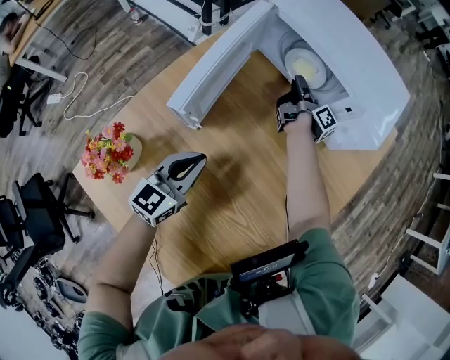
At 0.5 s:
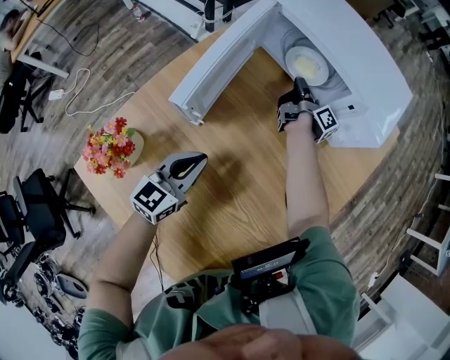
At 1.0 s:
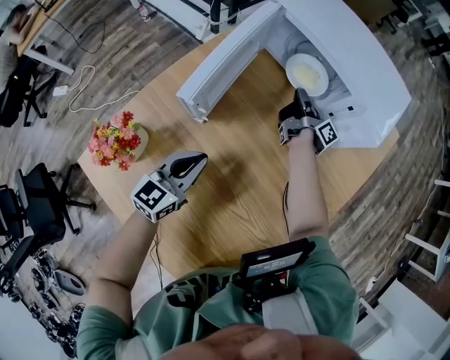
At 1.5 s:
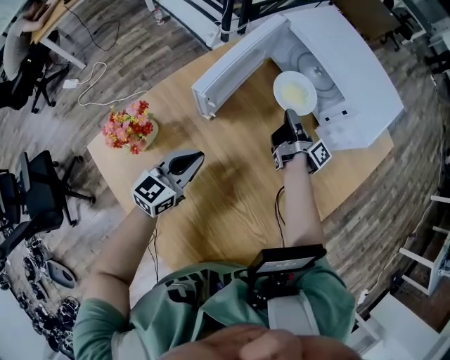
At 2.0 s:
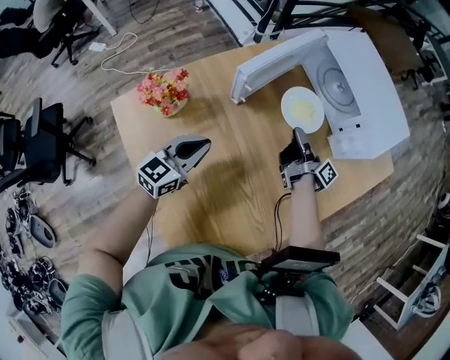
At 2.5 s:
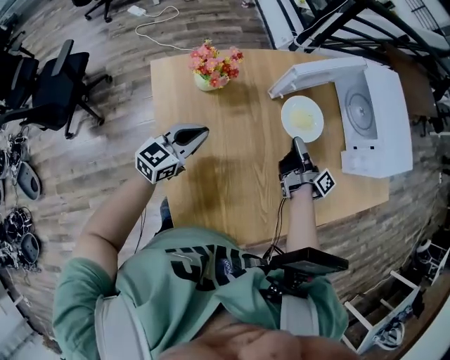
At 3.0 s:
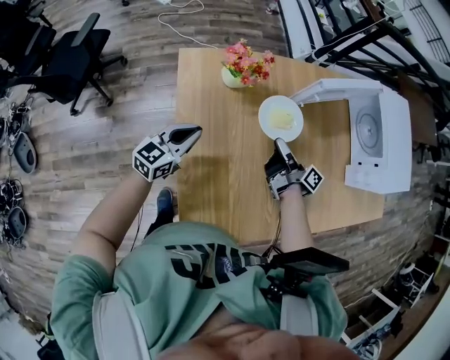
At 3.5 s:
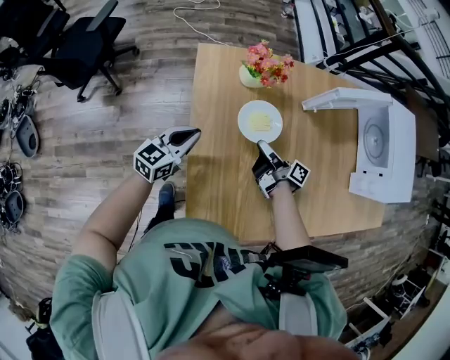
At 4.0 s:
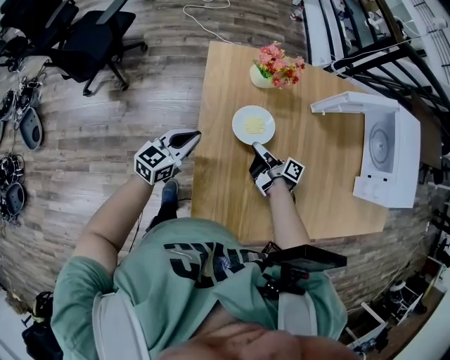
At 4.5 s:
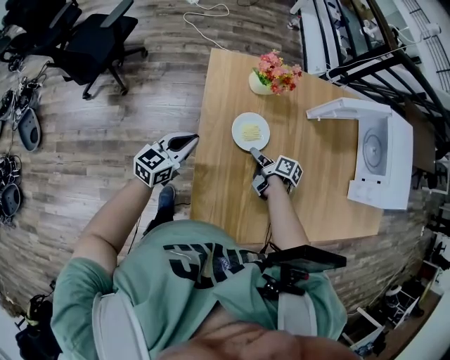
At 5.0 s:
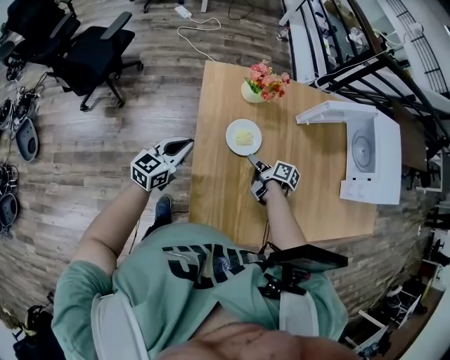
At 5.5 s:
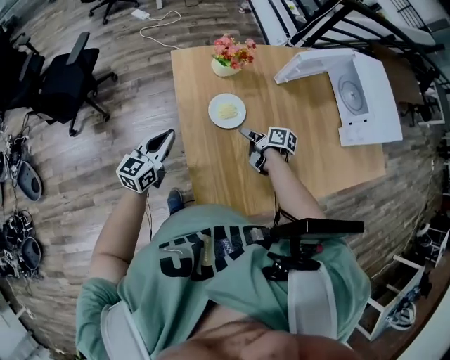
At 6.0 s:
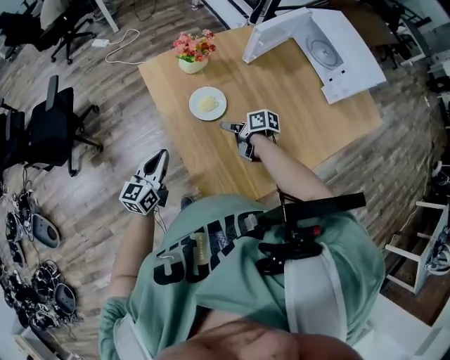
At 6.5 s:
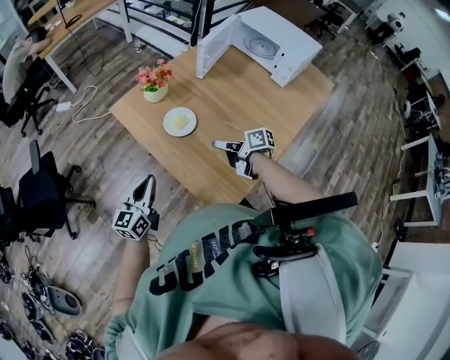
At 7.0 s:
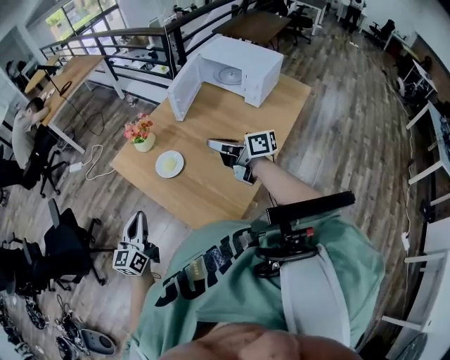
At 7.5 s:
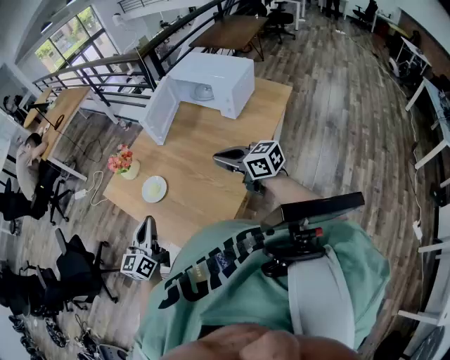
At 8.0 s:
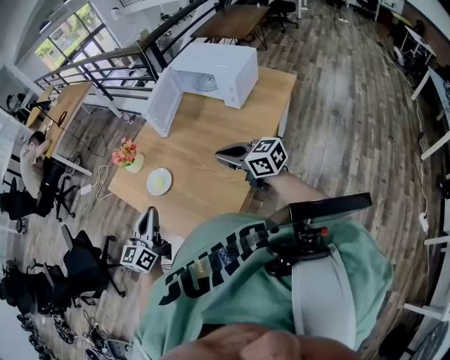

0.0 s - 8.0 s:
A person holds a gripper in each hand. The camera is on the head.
0.0 s - 2.0 s: The left gripper heads backward, covering approximately 10 cm; the right gripper heads backward, covering approximately 25 cm, rotates roughly 30 degrees, and closes.
2.0 s - 4.0 s: The left gripper moves about 30 cm, and swivels some 30 degrees; the right gripper ends up about 40 cm from where it was, and turns by approximately 50 degrees.
4.0 s - 6.0 s: The left gripper moves backward and upward, some 10 cm, while the right gripper heads backward, covering some 5 cm, swivels about 30 degrees, and opens up.
6.0 s - 8.0 s: The left gripper moves upward, to the right and backward, some 25 cm, and turns by some 20 degrees. The right gripper is displaced upward, to the right and backward by roughly 40 cm, rotates roughly 60 degrees, and closes its fingers.

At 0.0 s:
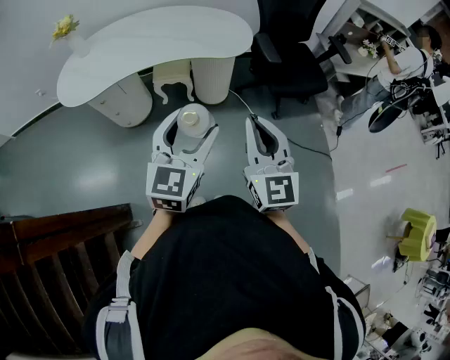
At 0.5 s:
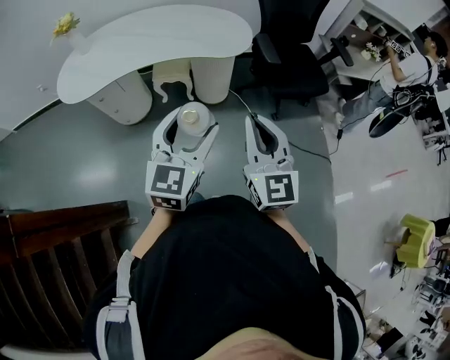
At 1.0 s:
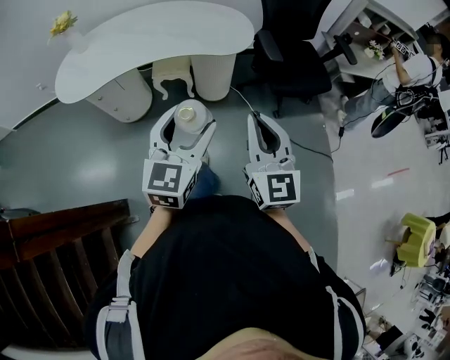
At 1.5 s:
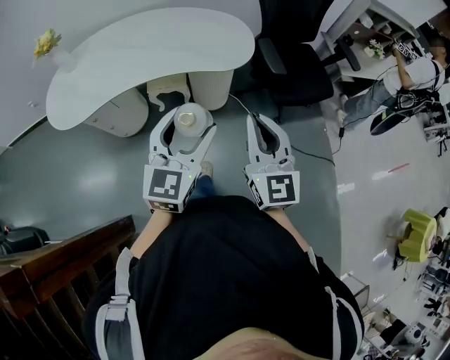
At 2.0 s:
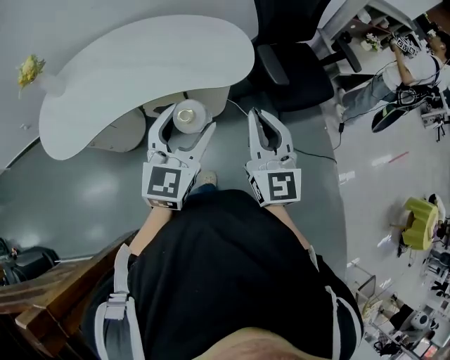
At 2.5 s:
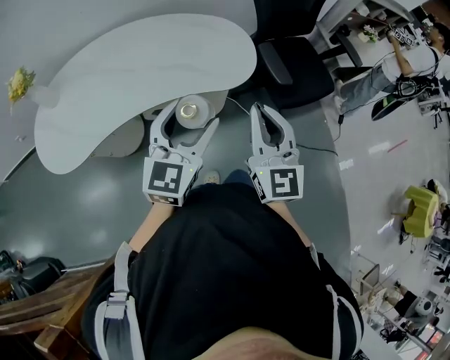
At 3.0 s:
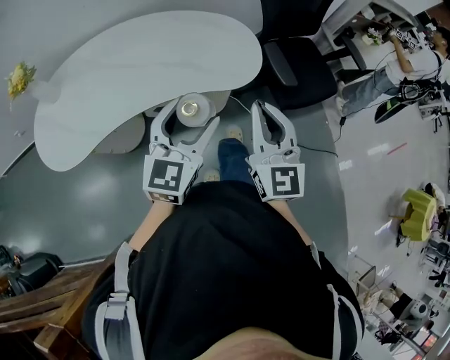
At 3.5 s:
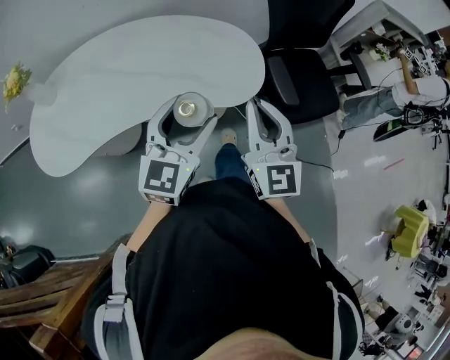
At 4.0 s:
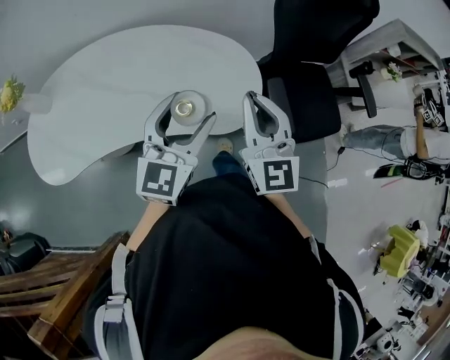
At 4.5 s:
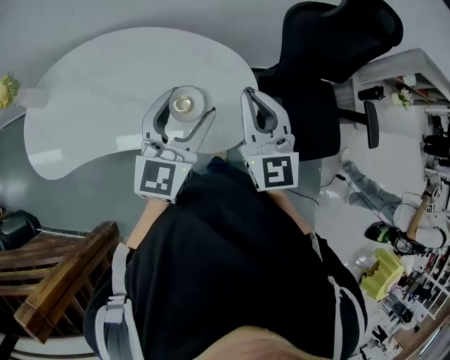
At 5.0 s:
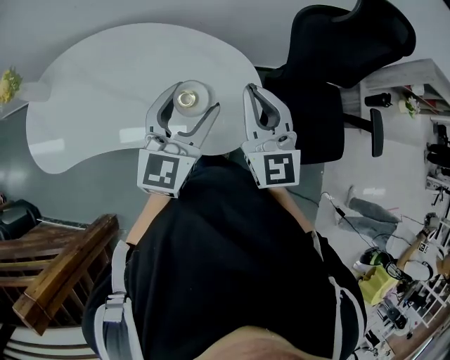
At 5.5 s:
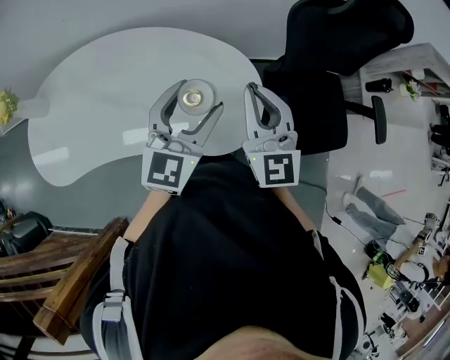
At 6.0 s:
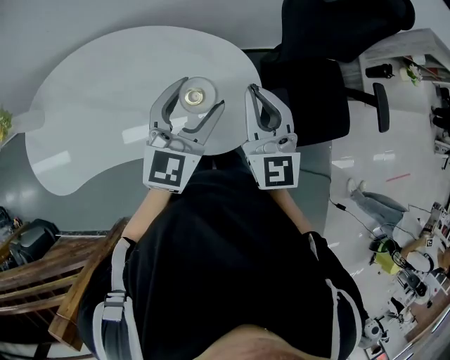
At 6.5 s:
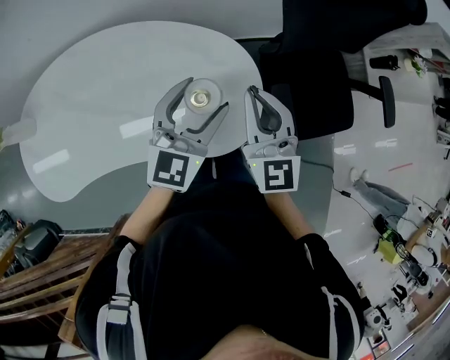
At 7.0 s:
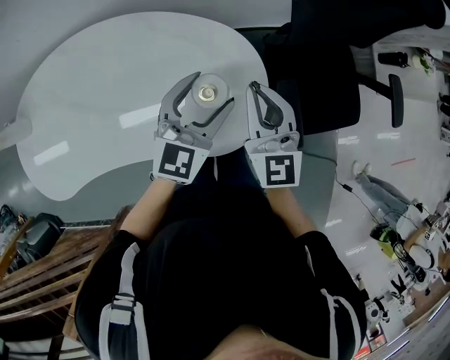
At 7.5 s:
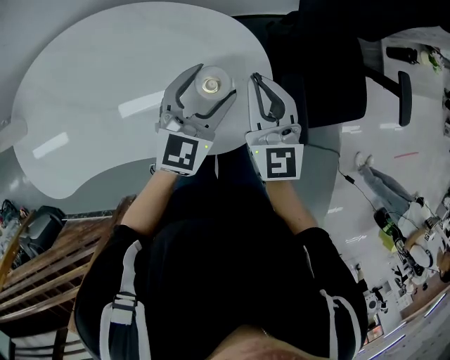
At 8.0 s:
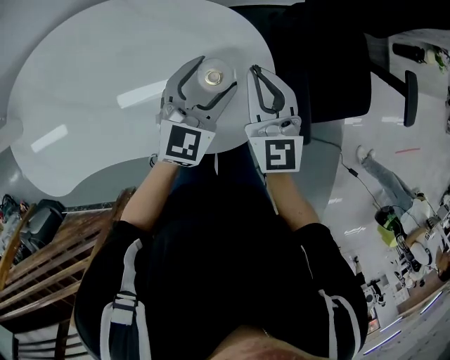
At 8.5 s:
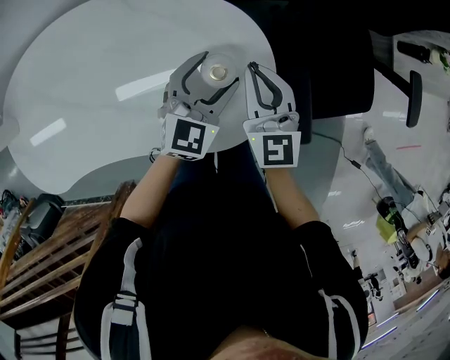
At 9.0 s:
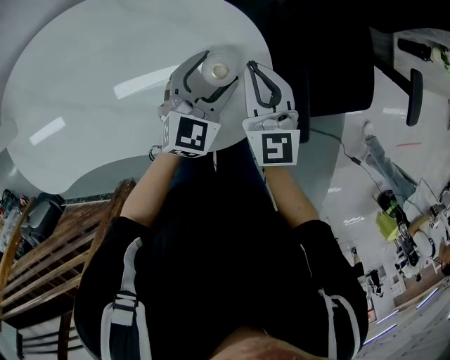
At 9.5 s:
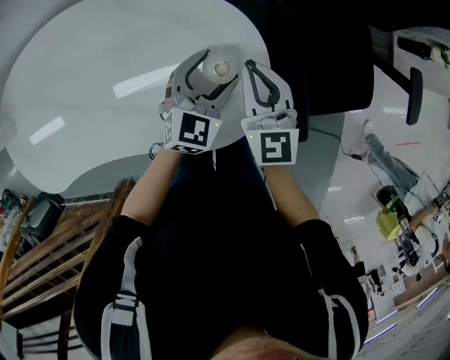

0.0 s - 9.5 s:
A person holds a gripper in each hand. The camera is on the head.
0.0 s - 2.0 s: The grippers both shift forward by some 25 cm.
2.0 s - 4.0 s: Both grippers move forward, some 25 cm.
4.0 s - 5.5 s: The grippers both shift forward by approximately 15 cm.
5.5 s - 7.5 s: Both grippers move downward, roughly 15 cm.
7.5 s - 9.5 s: The grippers both shift downward by some 10 cm.

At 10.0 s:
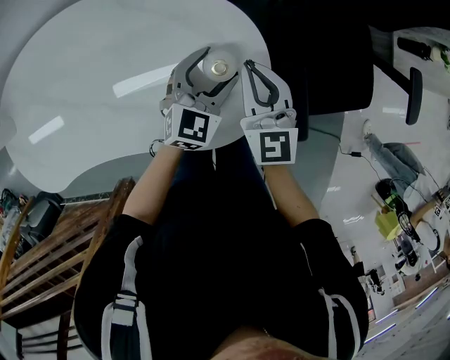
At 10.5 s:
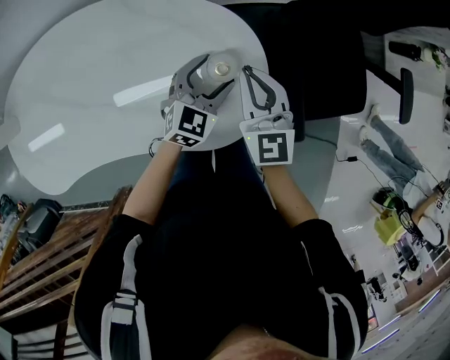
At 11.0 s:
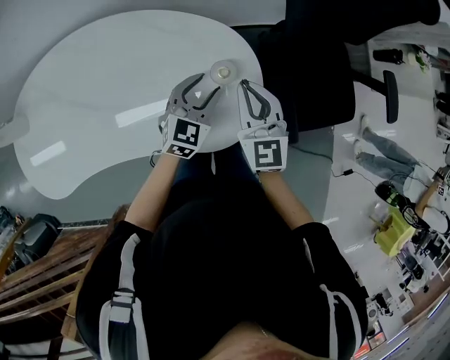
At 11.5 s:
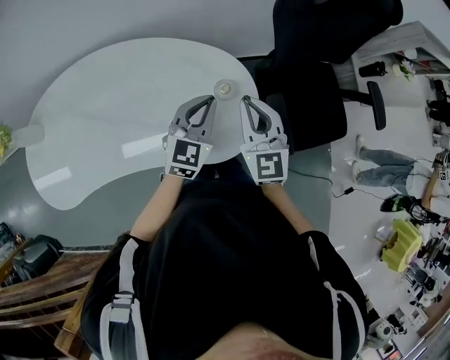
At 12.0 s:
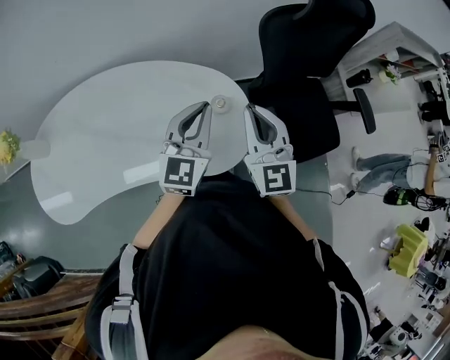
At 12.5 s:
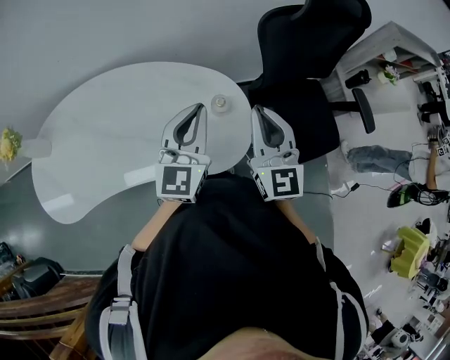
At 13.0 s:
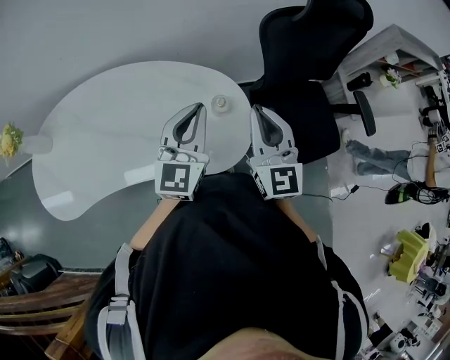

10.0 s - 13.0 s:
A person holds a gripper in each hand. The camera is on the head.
10.0 s - 11.5 s: The two grippers go approximately 15 cm upward. The left gripper closes its fingers.
11.5 s - 13.0 s: The two grippers go approximately 10 cm upward.

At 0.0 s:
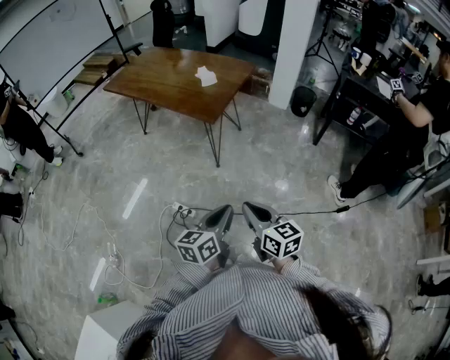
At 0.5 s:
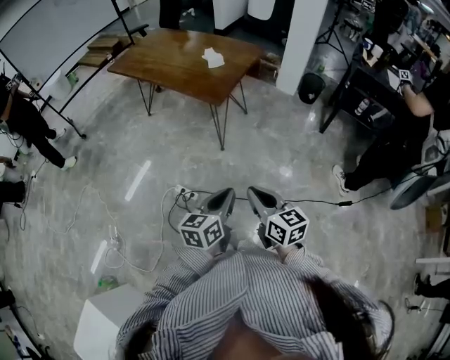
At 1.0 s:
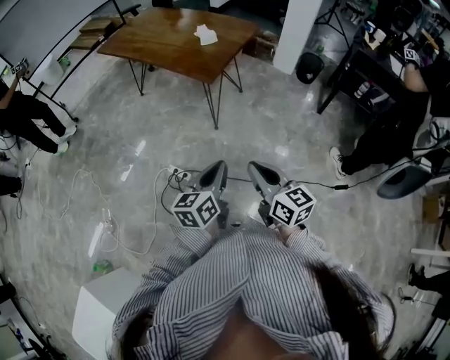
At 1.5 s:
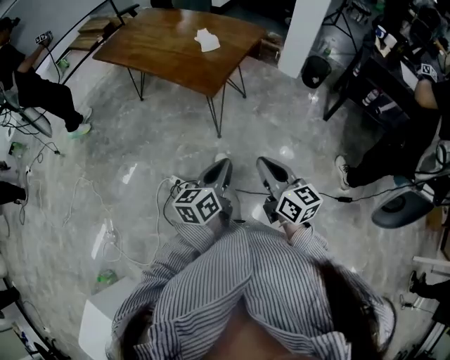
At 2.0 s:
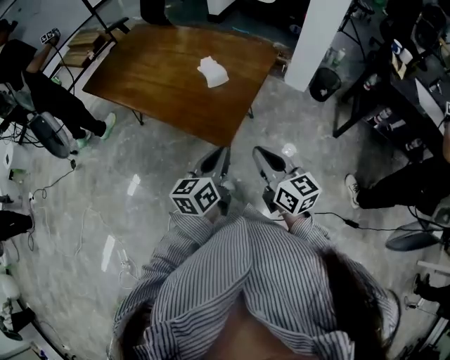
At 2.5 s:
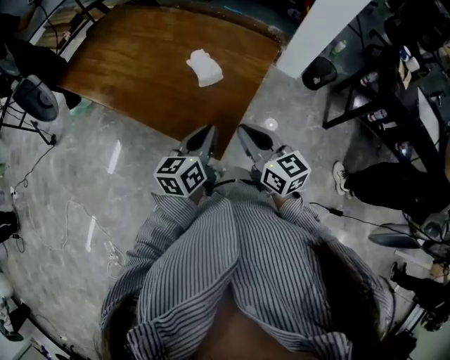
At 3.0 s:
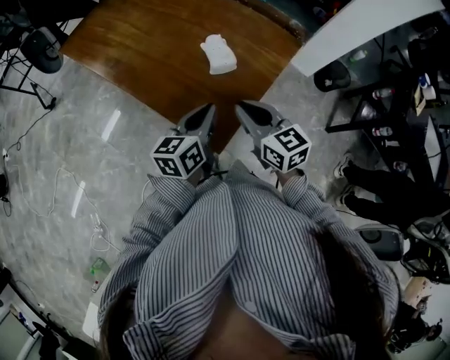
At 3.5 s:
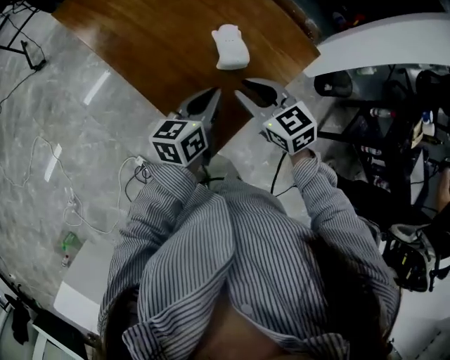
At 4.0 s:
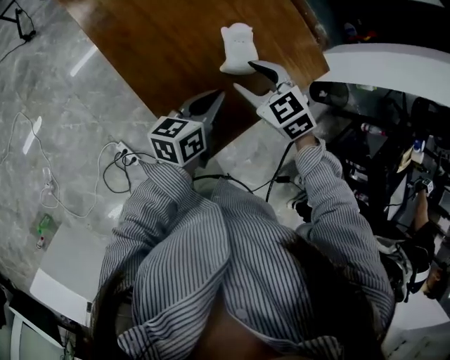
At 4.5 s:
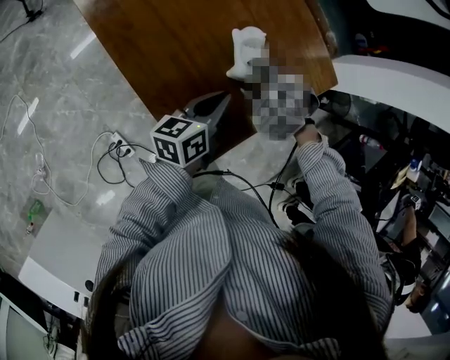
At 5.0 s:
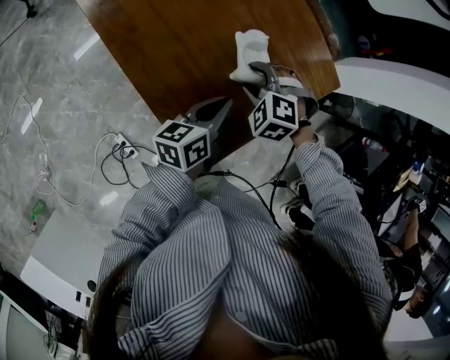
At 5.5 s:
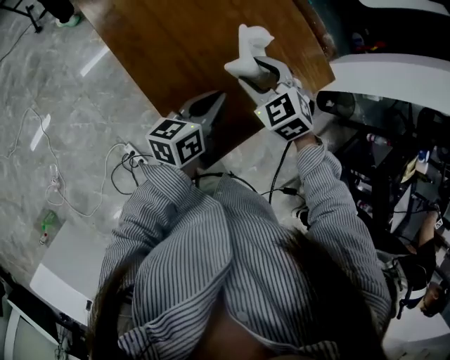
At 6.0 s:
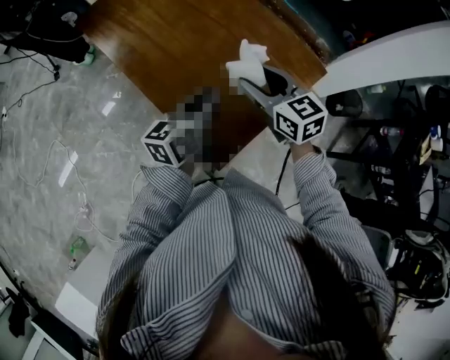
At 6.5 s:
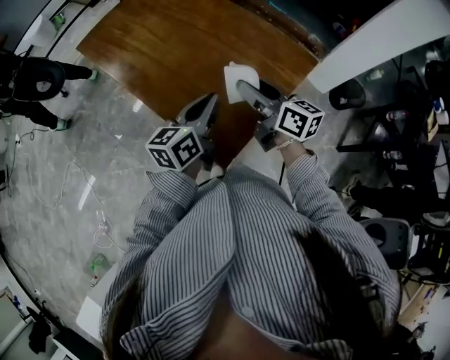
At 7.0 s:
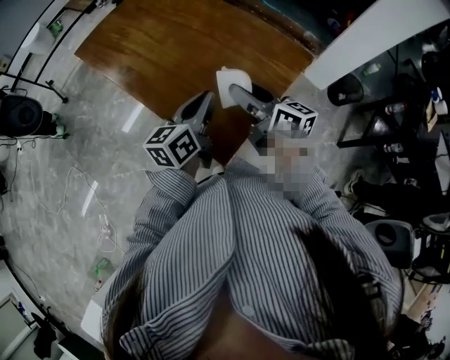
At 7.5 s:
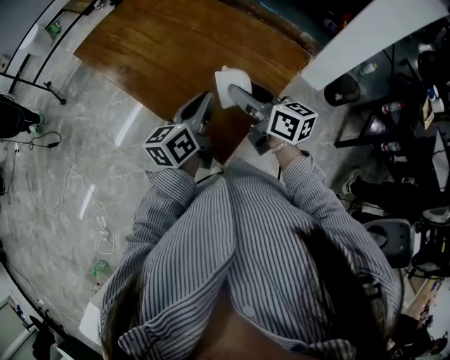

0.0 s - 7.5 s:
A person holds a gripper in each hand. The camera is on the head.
0.0 s - 2.0 s: The pair of grippers is taken forward, about 40 cm.
2.0 s - 4.0 s: The grippers both shift forward by about 30 cm. The right gripper angles its fingers downward, by roughly 40 degrees, and opens. Meanwhile the left gripper turns by some 20 degrees.
4.0 s - 5.5 s: The right gripper moves roughly 5 cm downward and comes back.
5.5 s - 7.5 s: The right gripper shifts some 15 cm upward and backward, and twists roughly 60 degrees clockwise, seen from behind. The left gripper moves upward, some 10 cm.
